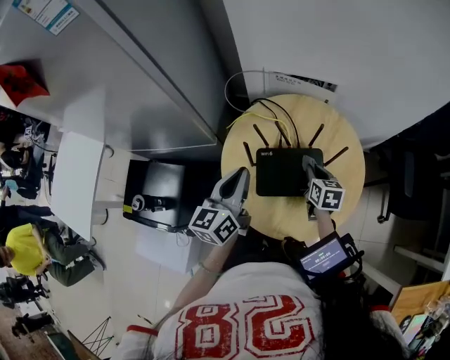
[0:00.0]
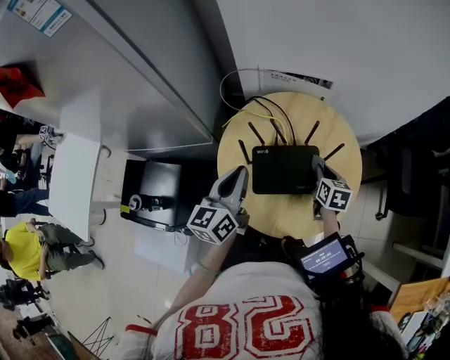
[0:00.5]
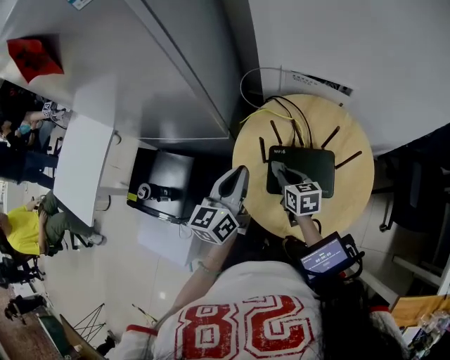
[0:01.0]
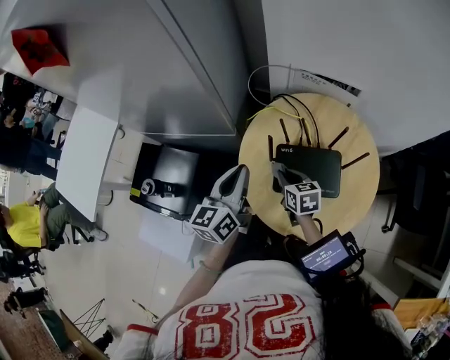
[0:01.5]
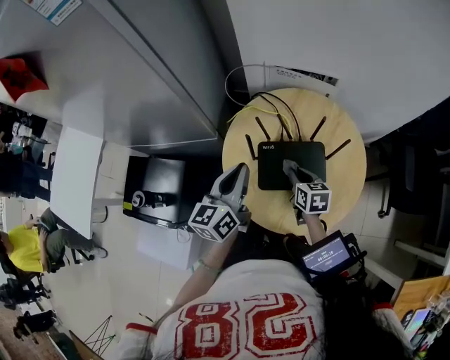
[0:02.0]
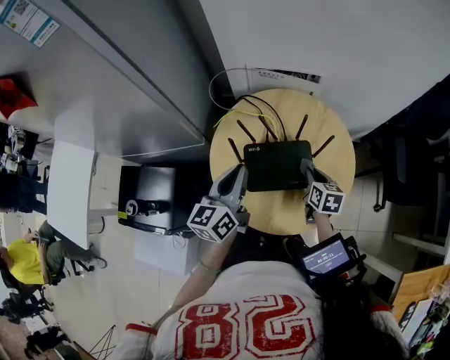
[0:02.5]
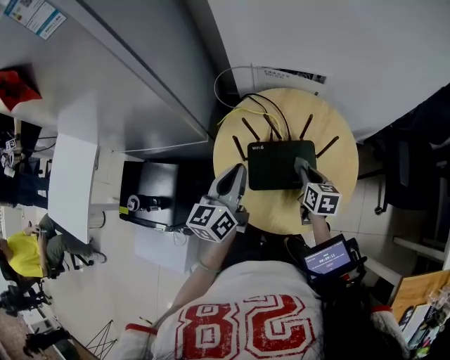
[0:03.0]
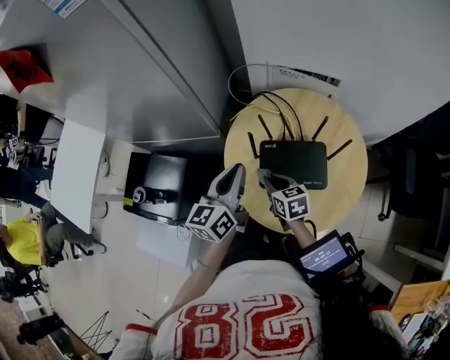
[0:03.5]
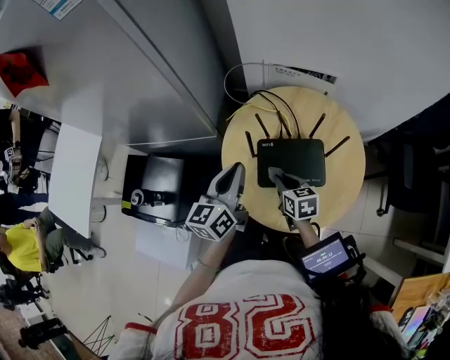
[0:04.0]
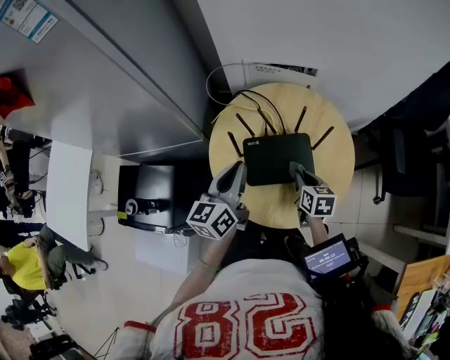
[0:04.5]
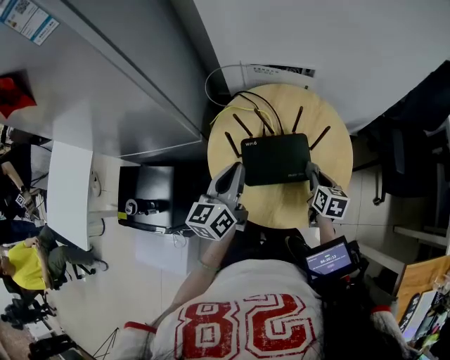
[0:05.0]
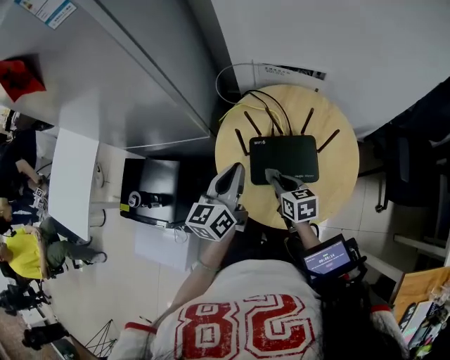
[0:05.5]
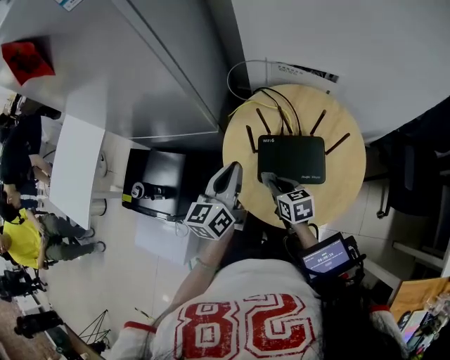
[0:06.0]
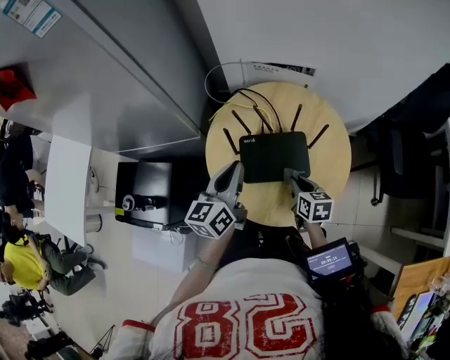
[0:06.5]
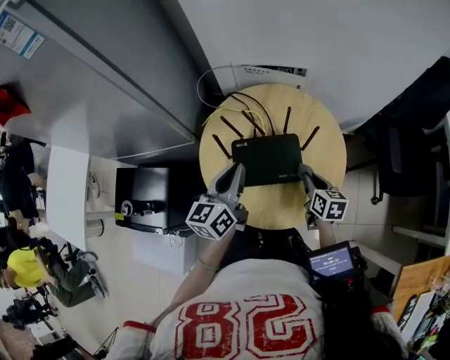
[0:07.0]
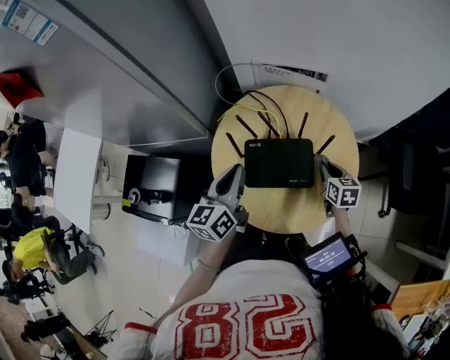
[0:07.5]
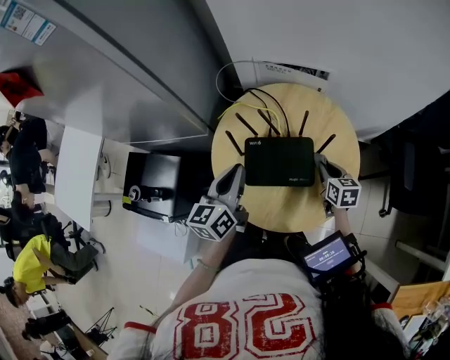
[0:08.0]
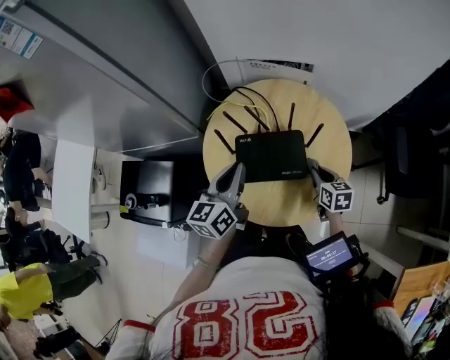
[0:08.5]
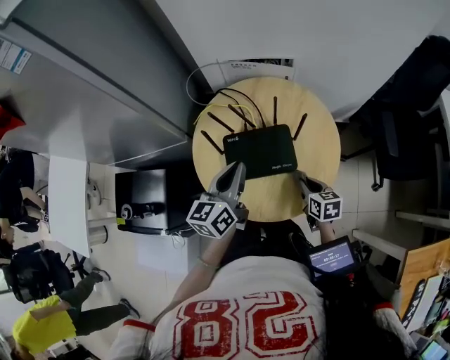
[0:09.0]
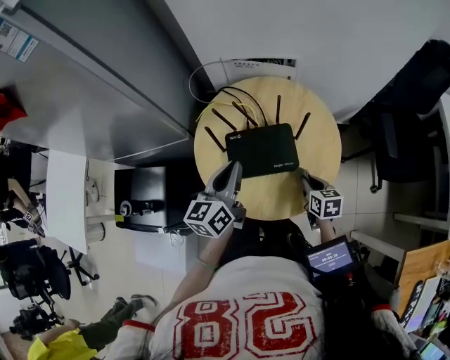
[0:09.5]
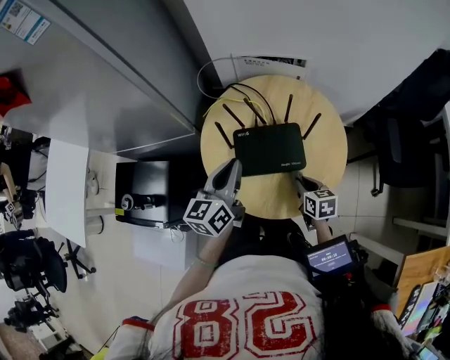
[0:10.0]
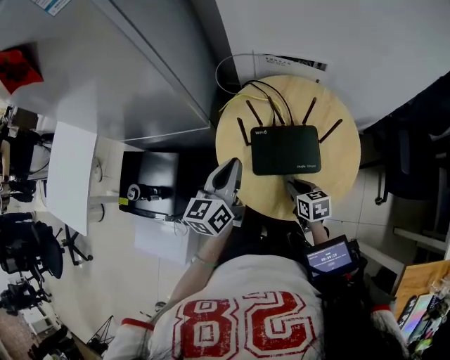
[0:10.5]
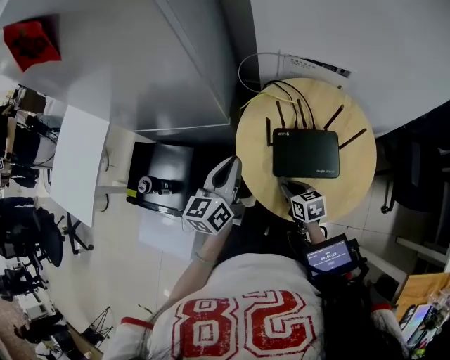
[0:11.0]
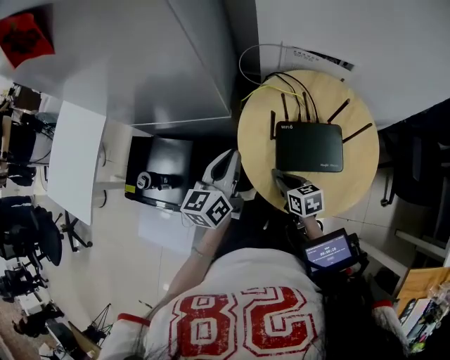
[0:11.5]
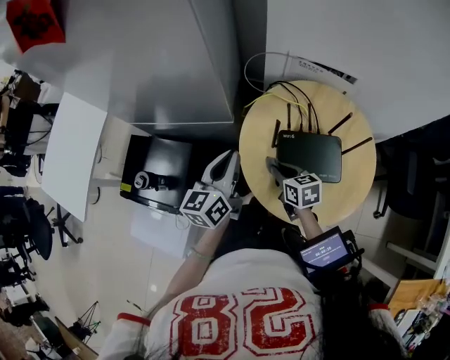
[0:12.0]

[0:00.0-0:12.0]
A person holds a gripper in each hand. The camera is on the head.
0:00.0 to 0:02.0: The right gripper goes left and right, approximately 20 cm each way, reversing 2 times.
0:02.0 to 0:04.0: The right gripper moves left and right over about 20 cm, changing direction 2 times.
0:04.0 to 0:06.0: The right gripper reaches about 20 cm to the right, then returns.
0:06.0 to 0:08.0: The right gripper shifts some 25 cm to the right, while the left gripper shifts approximately 5 cm to the right.
0:08.0 to 0:10.0: The right gripper shifts about 10 cm backward and to the left.
0:10.0 to 0:12.0: The left gripper travels to the left by roughly 15 cm. Meanwhile the right gripper is displaced to the left and forward by about 25 cm.

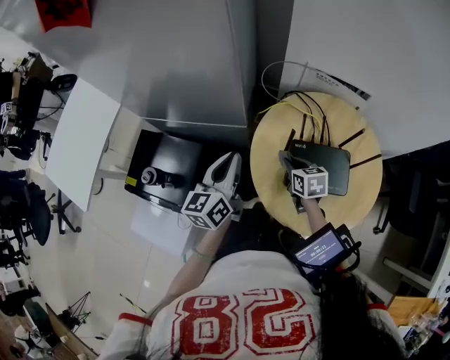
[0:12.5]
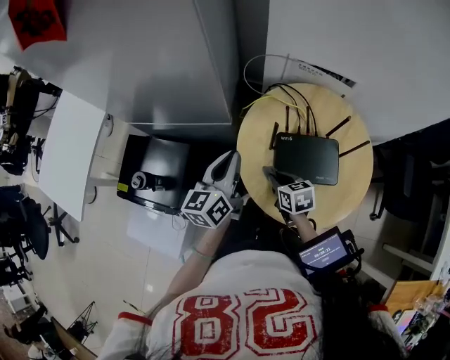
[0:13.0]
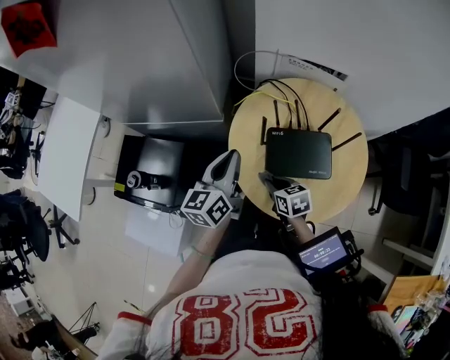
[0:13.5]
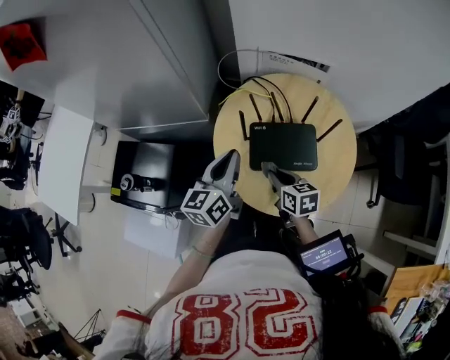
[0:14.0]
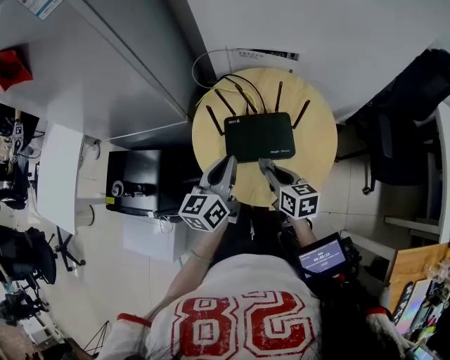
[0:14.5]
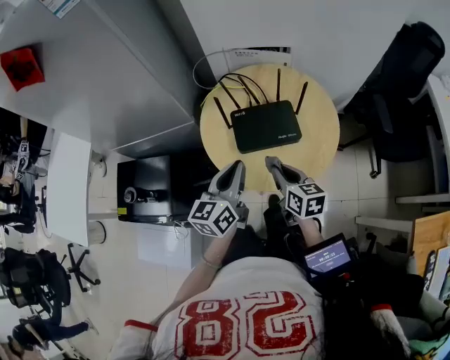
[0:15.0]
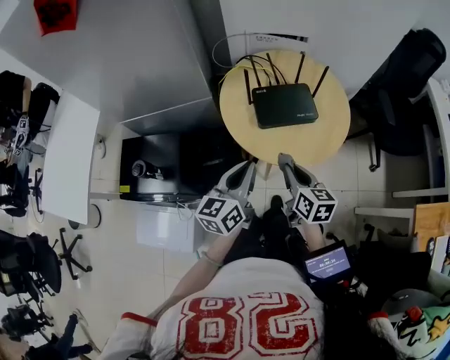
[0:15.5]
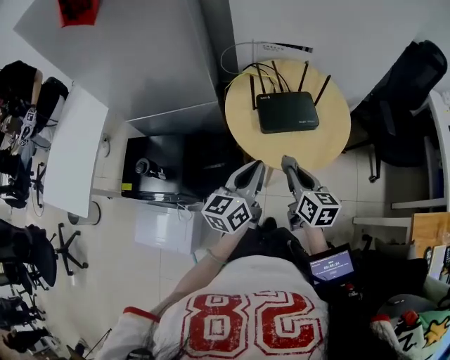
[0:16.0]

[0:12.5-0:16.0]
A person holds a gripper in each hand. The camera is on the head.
0:12.5 to 0:14.5: The left gripper moves to the right and backward, about 20 cm; the right gripper is displaced backward and to the right by some 20 cm, and turns by about 20 degrees.
0:14.5 to 0:16.0: The right gripper heads backward, upward and to the left, covering approximately 15 cm. Meanwhile the left gripper moves backward, some 15 cm.

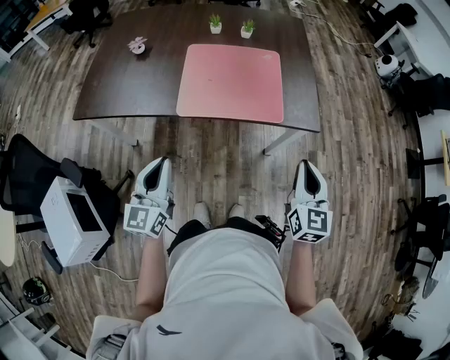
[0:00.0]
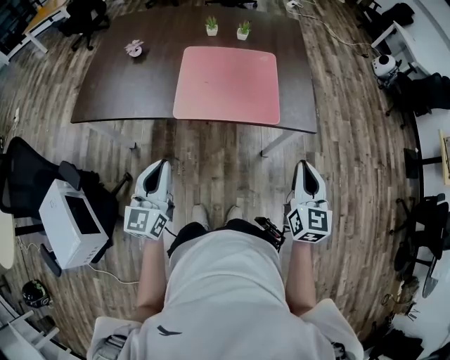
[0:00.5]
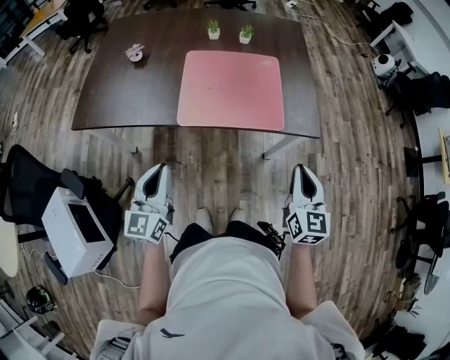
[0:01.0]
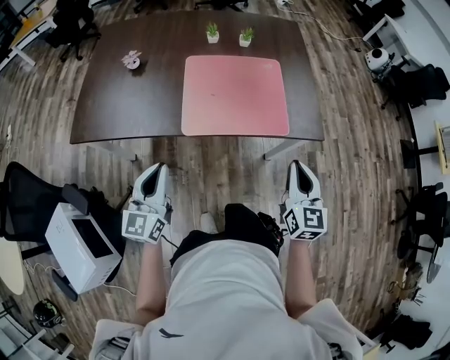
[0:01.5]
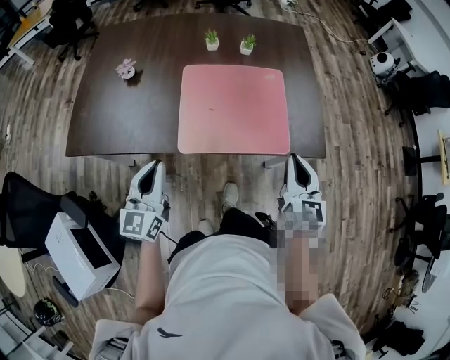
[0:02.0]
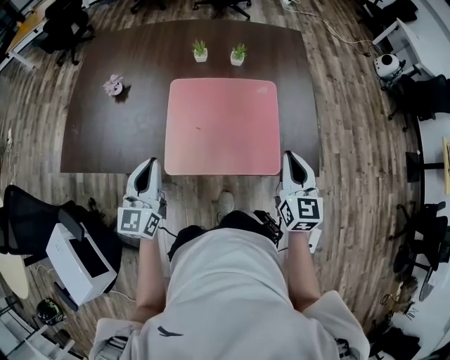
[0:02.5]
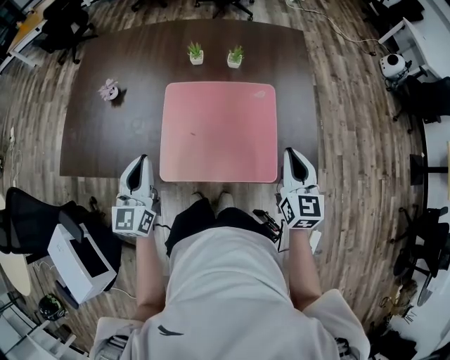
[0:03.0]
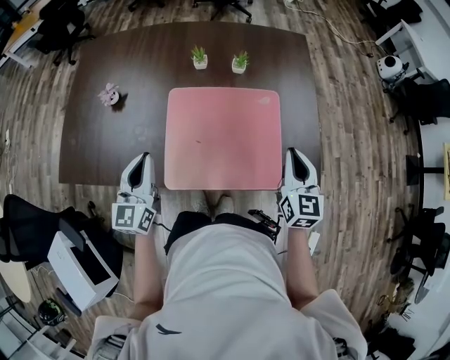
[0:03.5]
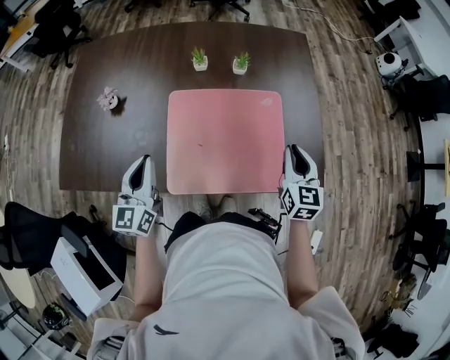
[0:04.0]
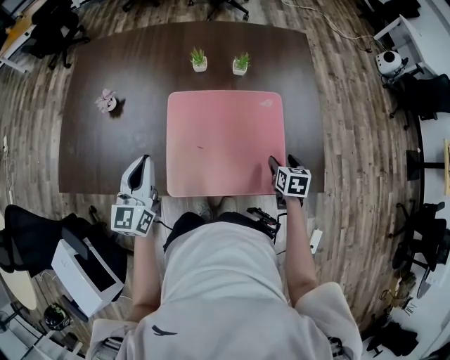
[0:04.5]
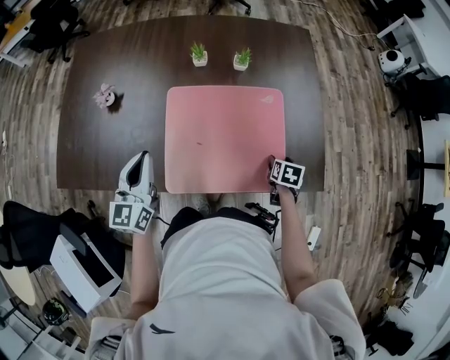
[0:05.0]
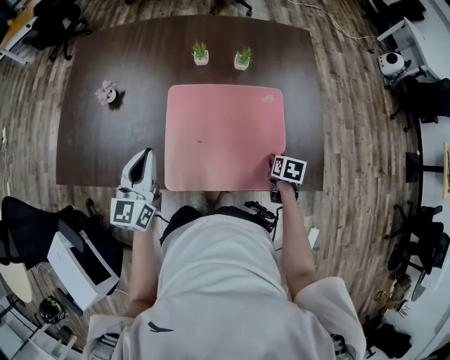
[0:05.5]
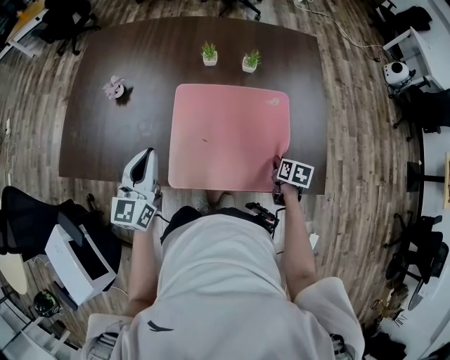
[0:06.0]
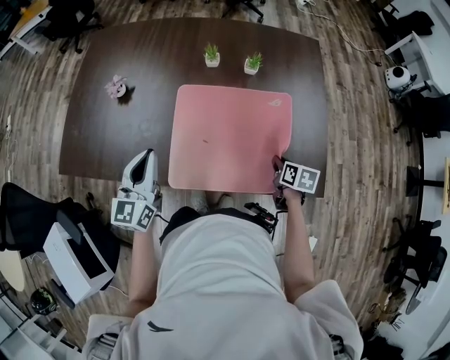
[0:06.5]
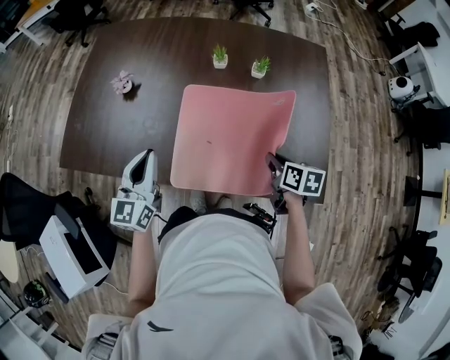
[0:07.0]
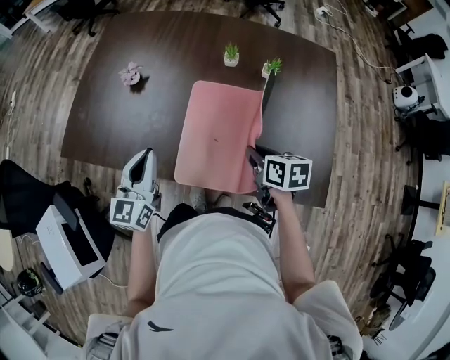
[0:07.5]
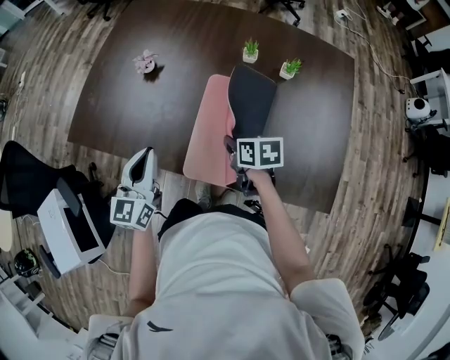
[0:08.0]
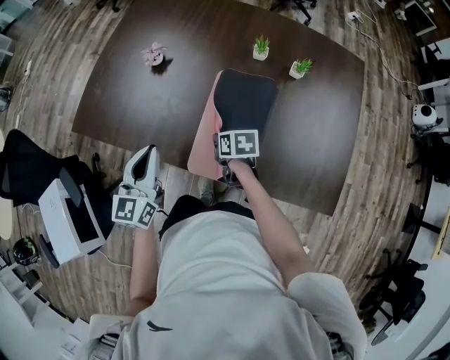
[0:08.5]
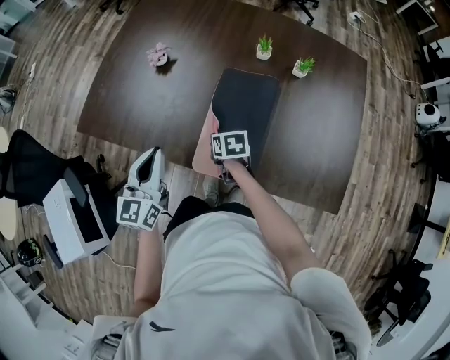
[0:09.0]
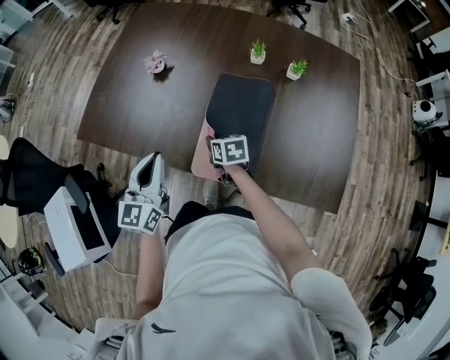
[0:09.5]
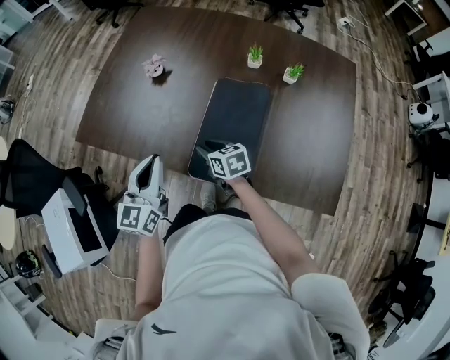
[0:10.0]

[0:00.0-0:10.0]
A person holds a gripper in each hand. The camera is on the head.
0:00.0 to 0:02.0: Both grippers move forward and to the left, about 15 cm.
0:02.0 to 0:04.0: The two grippers go approximately 20 cm forward.
0:04.0 to 0:06.0: The right gripper moves downward, approximately 20 cm, points its fingers some 40 degrees further downward, and opens, then closes again.
0:06.0 to 0:08.0: The left gripper moves some 10 cm; the right gripper shifts by roughly 30 cm, and changes its angle by roughly 40 degrees.
0:08.0 to 0:10.0: The right gripper is displaced to the left and downward by about 10 cm.

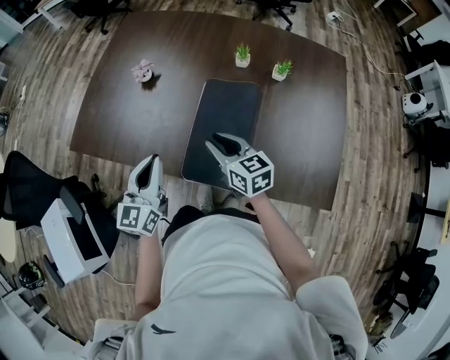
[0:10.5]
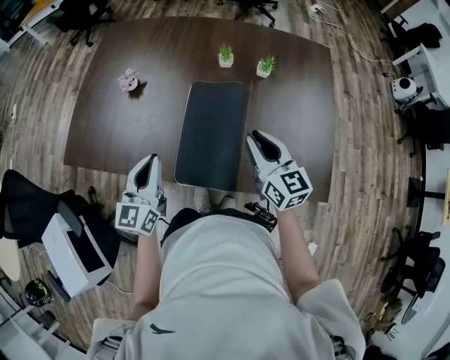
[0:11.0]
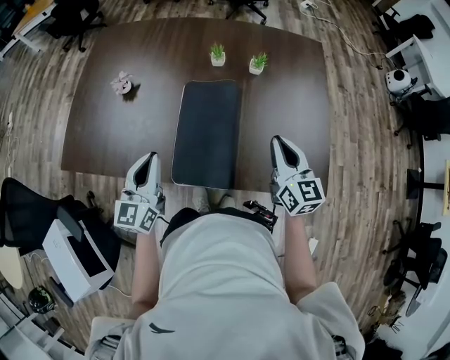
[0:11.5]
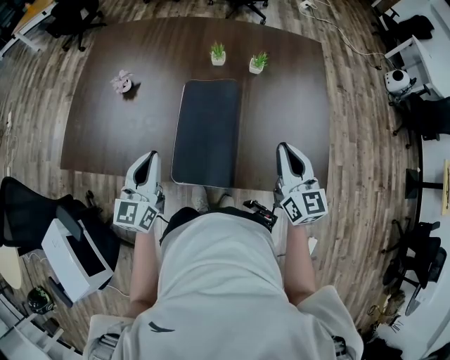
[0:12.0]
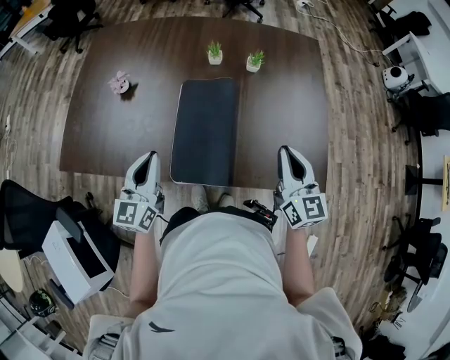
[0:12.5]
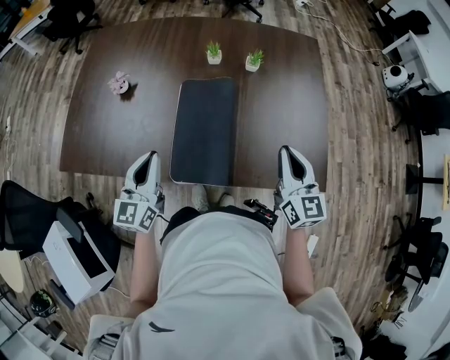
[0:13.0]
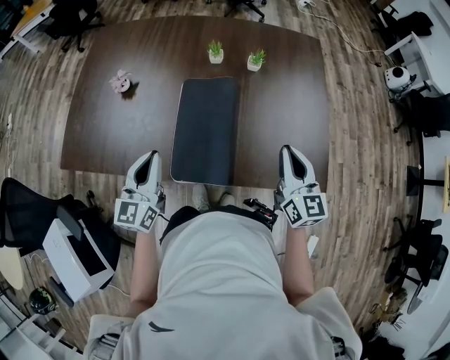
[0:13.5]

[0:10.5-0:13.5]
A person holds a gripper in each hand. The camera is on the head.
0:10.5 to 0:12.0: The right gripper heads to the right, covering approximately 20 cm, and changes its angle by some 40 degrees.
0:12.0 to 0:13.5: There are only small adjustments of the grippers.
